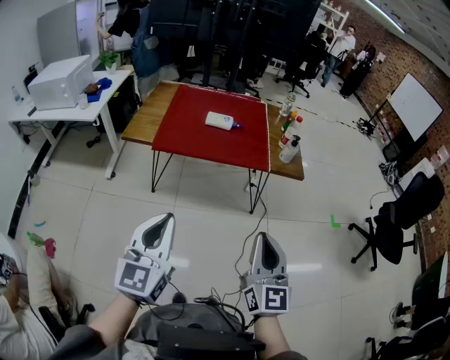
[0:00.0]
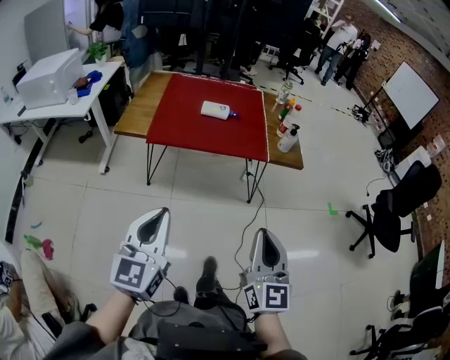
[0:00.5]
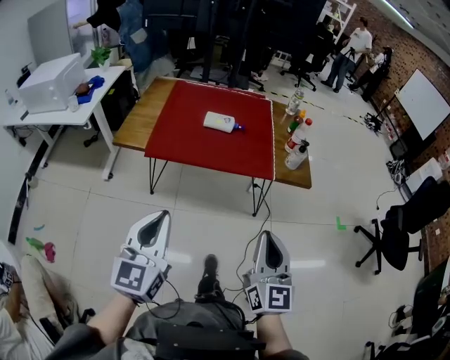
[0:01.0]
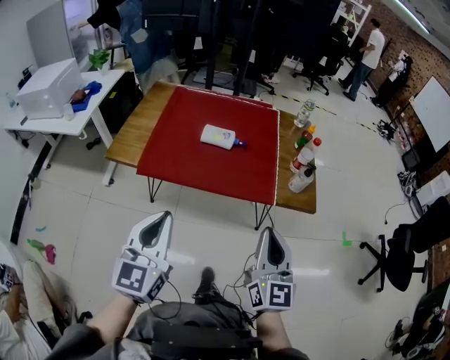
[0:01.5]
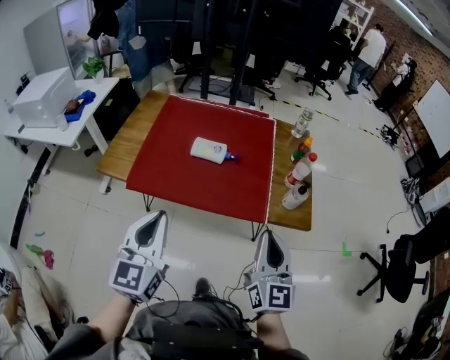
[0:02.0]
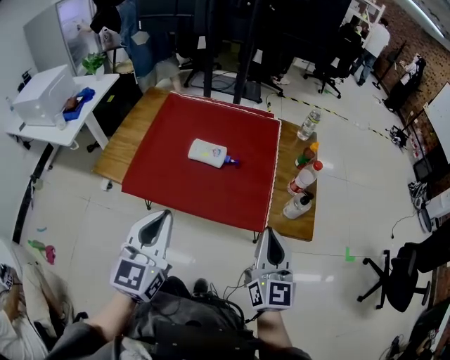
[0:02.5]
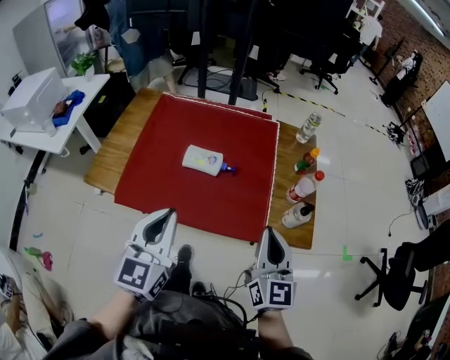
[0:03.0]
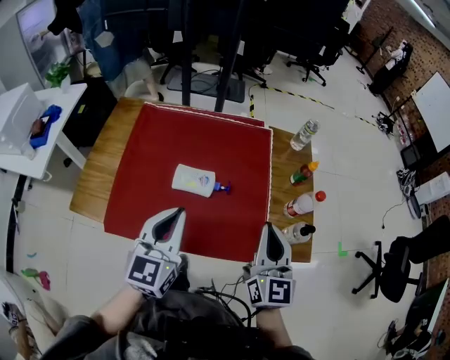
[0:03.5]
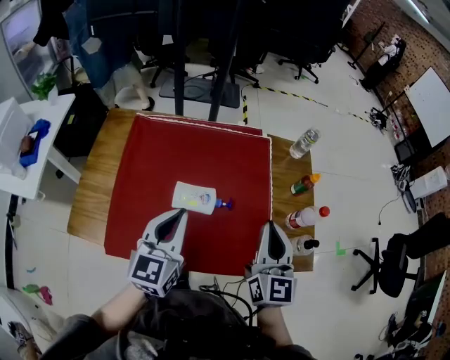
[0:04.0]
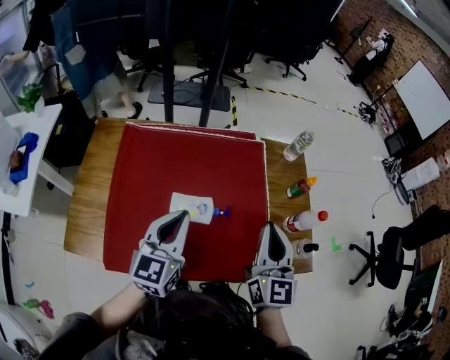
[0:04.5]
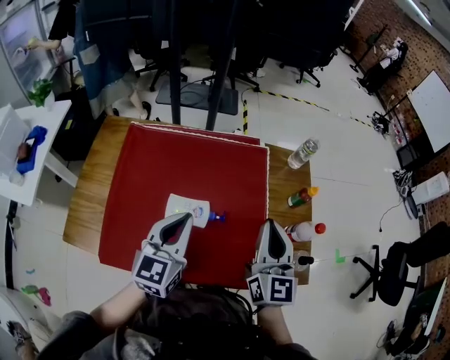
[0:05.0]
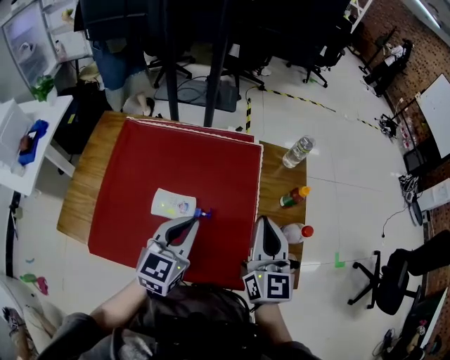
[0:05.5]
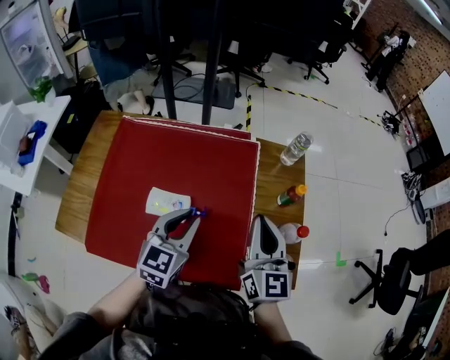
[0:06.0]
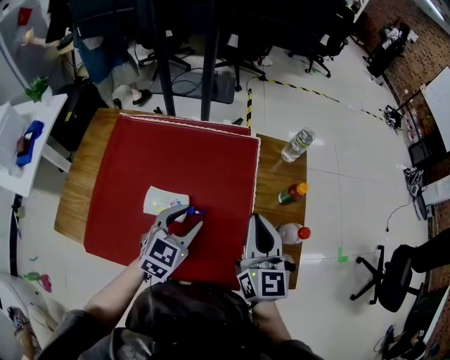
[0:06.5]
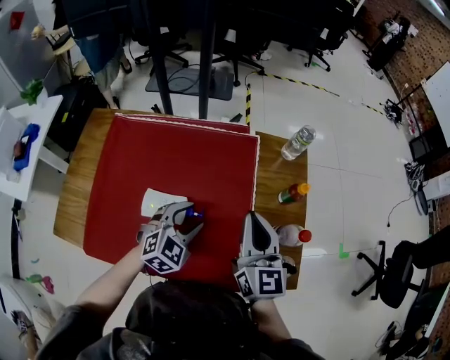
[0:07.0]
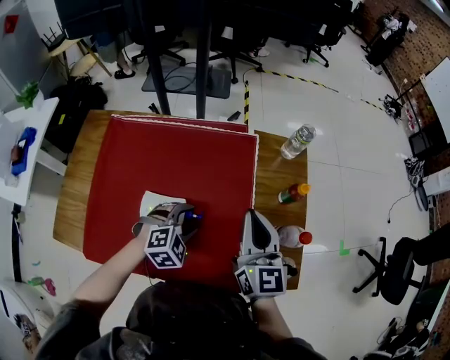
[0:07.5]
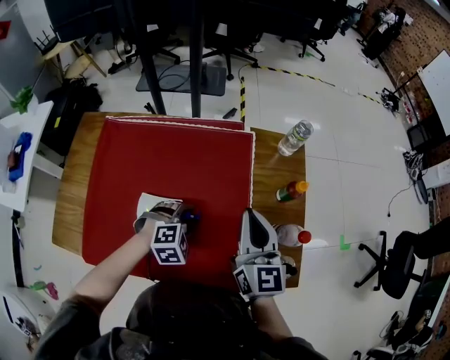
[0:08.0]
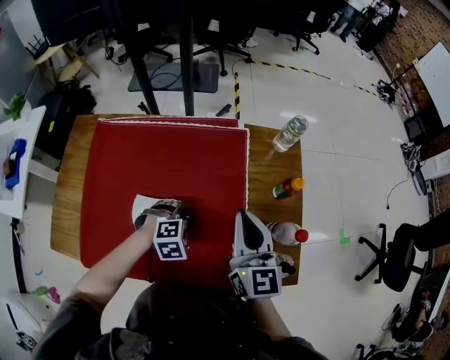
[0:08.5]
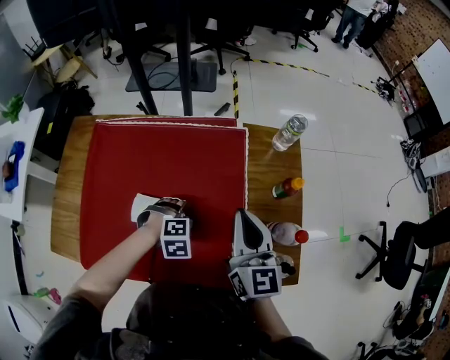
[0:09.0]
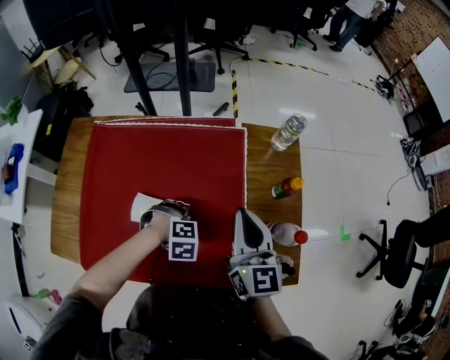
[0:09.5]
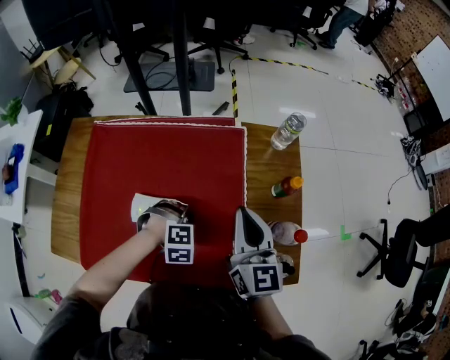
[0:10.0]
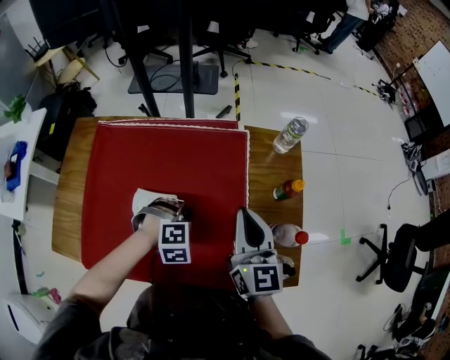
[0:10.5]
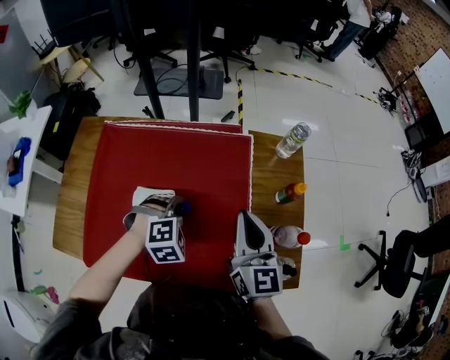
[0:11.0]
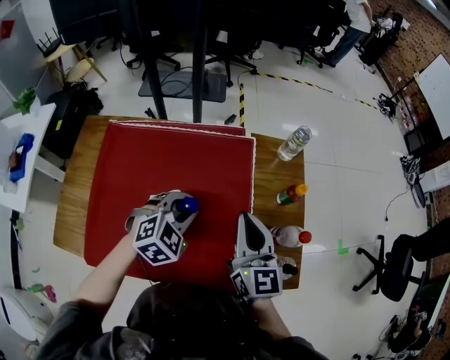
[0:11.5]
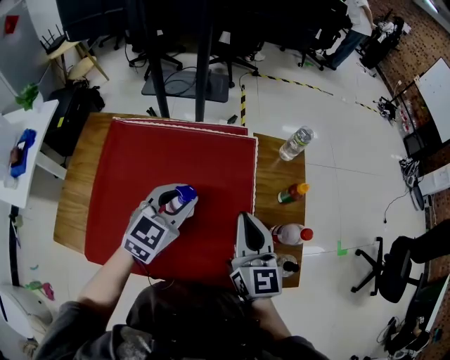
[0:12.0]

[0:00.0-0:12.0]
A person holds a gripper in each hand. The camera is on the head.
0:00.0 to 0:02.0: Both grippers travel together forward, roughly 40 cm.
0:02.0 to 0:04.0: Both grippers travel together forward, approximately 35 cm.
0:04.0 to 0:06.0: The right gripper shifts roughly 15 cm forward and to the right. Meanwhile the left gripper is displaced to the right and forward by about 15 cm.
0:06.0 to 0:08.0: The left gripper moves downward, about 20 cm, tilts its fingers about 40 degrees downward, and opens its fingers; the right gripper travels forward by some 5 cm.
0:08.0 to 0:10.0: The left gripper changes its angle by roughly 20 degrees, and closes up.
0:10.0 to 0:12.0: The right gripper heads backward, covering approximately 5 cm. The left gripper is displaced upward by approximately 20 cm, and angles its fingers upward, by some 50 degrees.

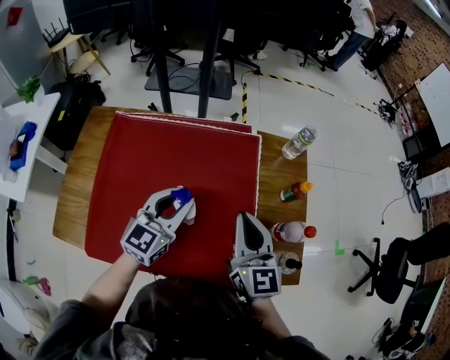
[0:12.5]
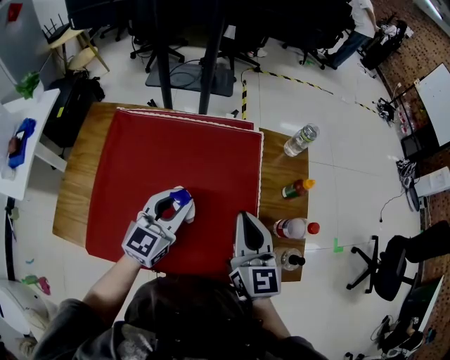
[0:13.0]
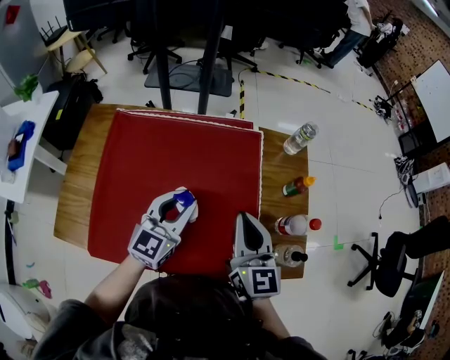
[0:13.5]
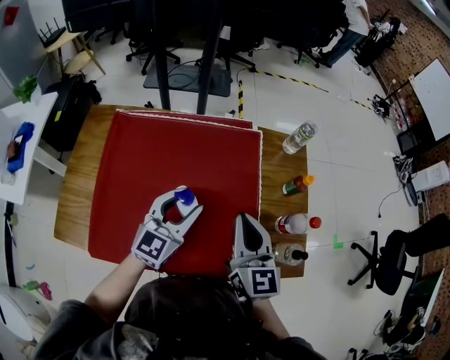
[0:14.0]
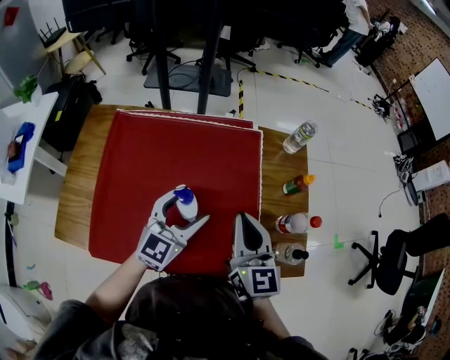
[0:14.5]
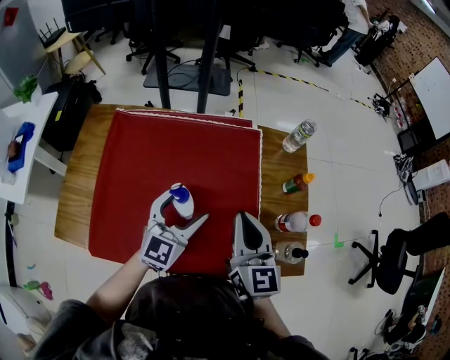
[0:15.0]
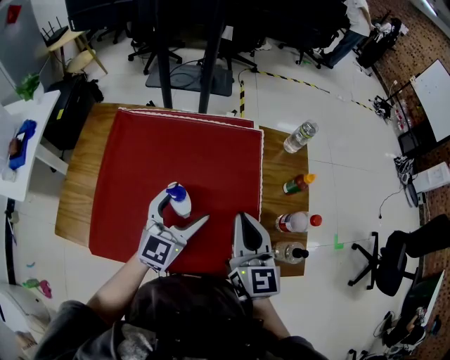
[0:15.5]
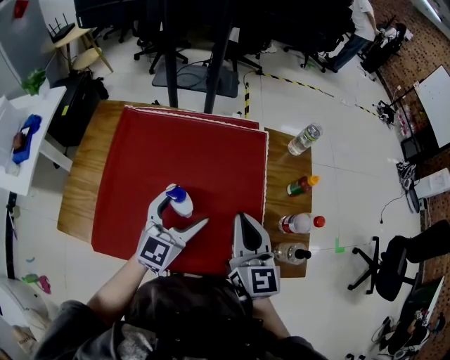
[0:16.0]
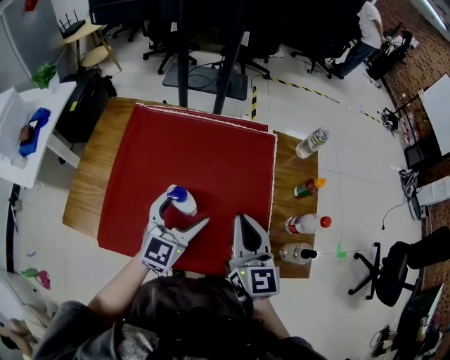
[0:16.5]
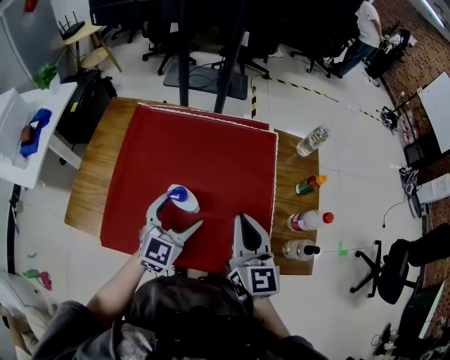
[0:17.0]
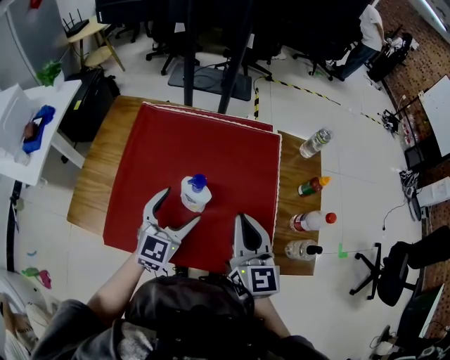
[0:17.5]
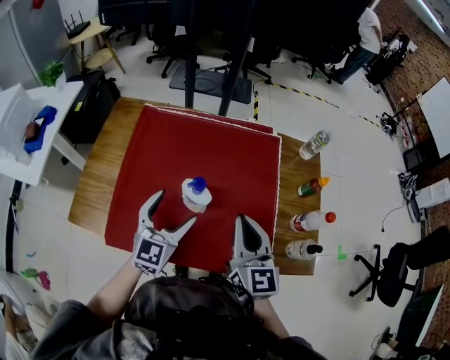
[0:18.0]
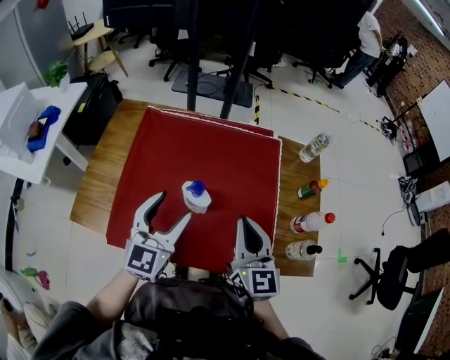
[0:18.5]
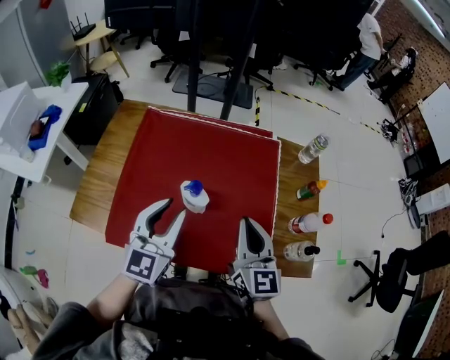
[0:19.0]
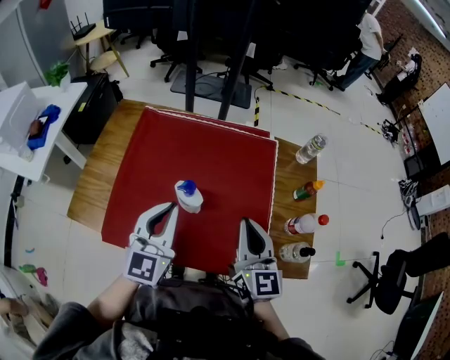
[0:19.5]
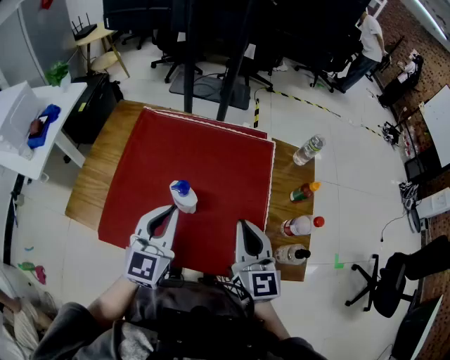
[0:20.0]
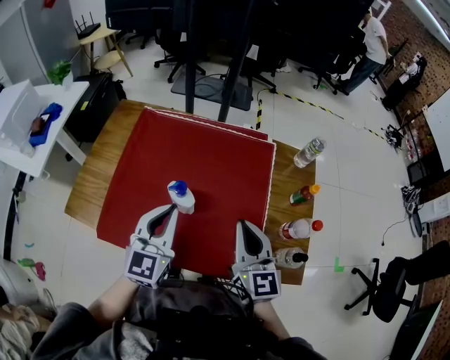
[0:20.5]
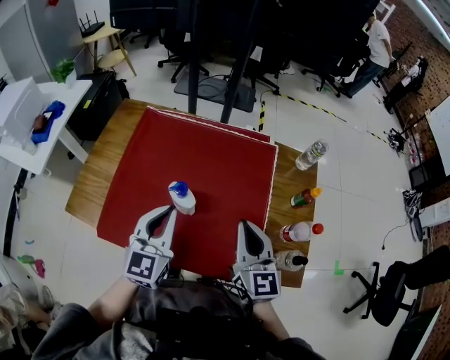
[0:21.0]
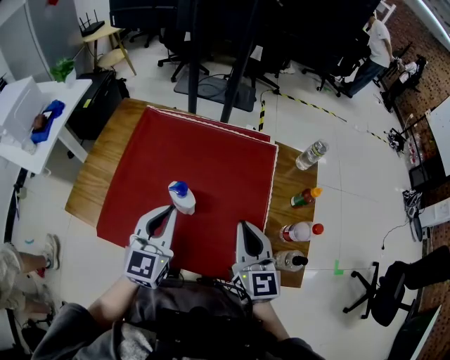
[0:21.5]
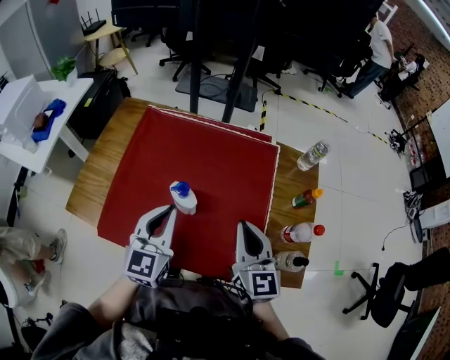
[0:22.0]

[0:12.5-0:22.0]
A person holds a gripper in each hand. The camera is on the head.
0:12.5 to 0:14.5: The left gripper opens its fingers.
0:14.5 to 0:16.5: The right gripper ends up approximately 5 cm from where it was. The left gripper travels to the left by roughly 5 cm.
0:16.5 to 0:18.0: The left gripper heads to the left, covering approximately 5 cm.
0:18.0 to 0:20.0: The right gripper shifts by some 5 cm. Meanwhile the left gripper shifts roughly 5 cm upward, and closes its fingers.
0:20.0 to 0:22.0: The grippers move only a little.

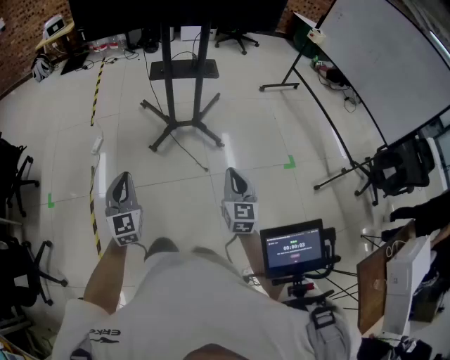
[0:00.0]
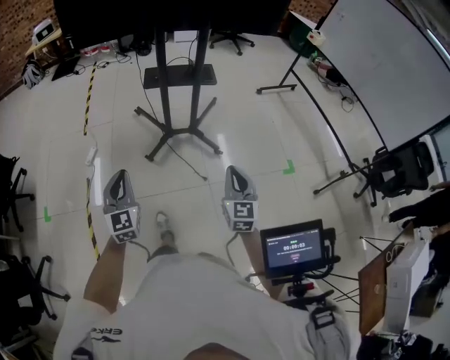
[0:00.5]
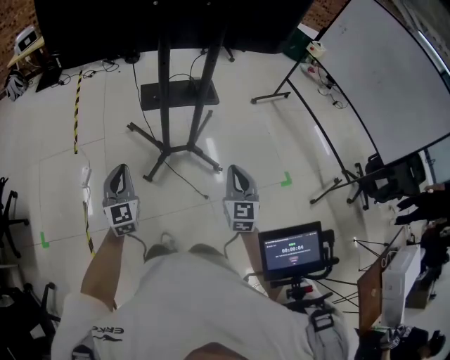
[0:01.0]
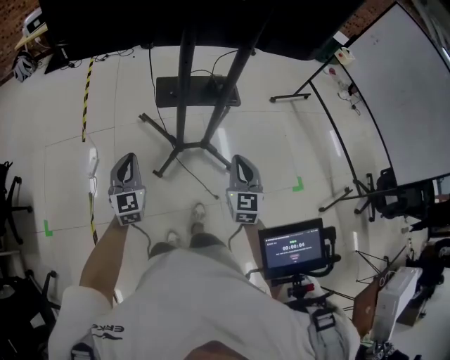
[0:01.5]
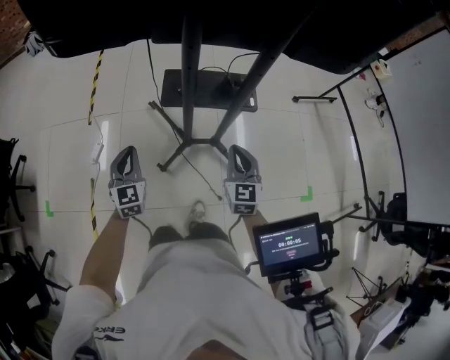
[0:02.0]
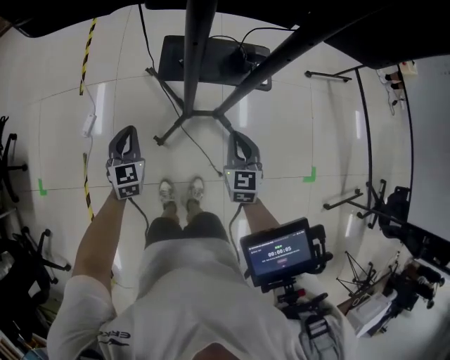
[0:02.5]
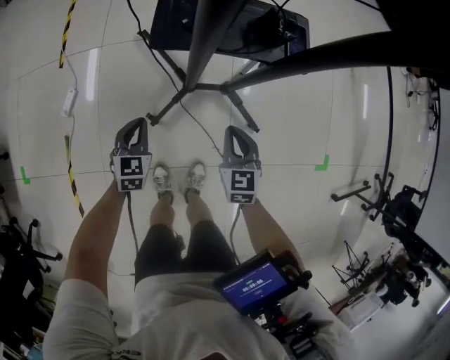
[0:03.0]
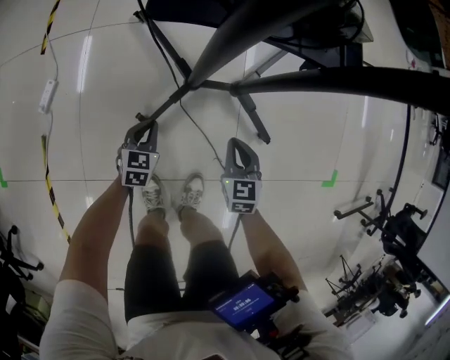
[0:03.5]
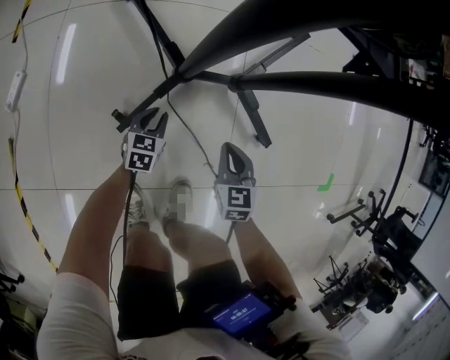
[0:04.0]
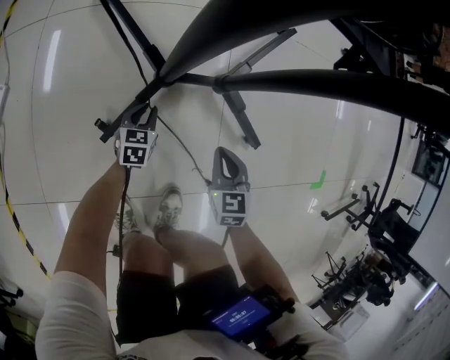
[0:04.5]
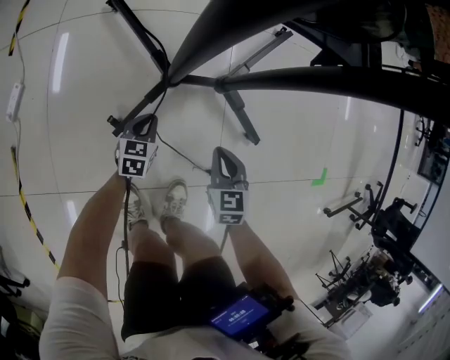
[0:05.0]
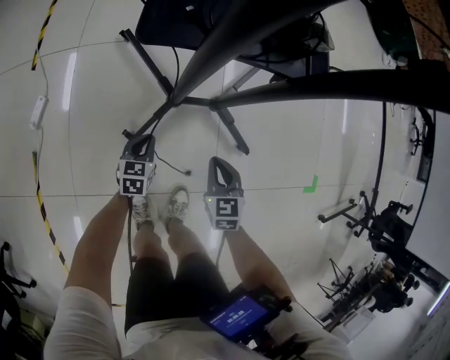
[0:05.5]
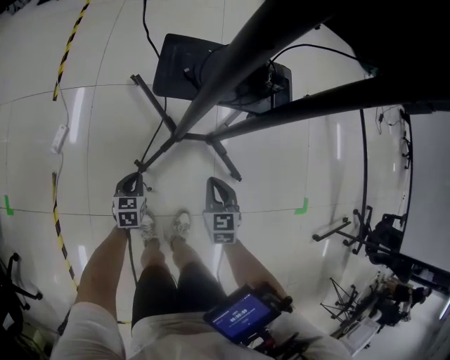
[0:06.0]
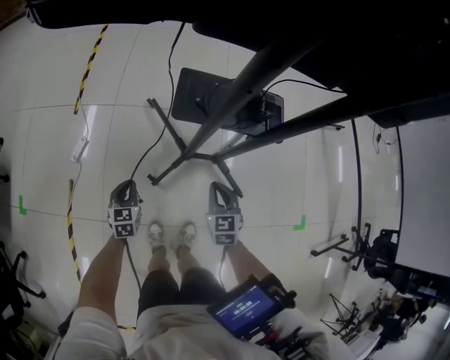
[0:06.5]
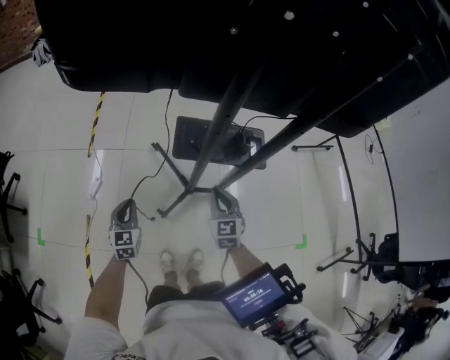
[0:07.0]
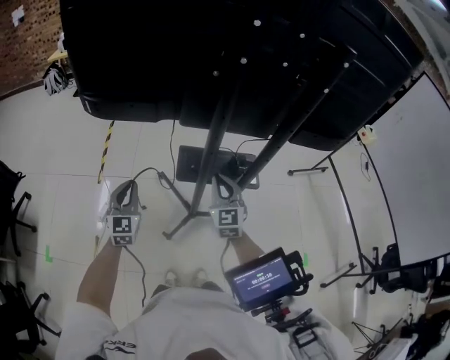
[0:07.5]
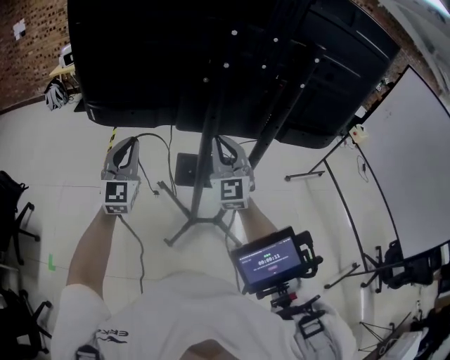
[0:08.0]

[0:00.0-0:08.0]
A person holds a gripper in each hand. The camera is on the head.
0:00.0 to 0:02.0: The two grippers travel together, forward, roughly 50 cm.
0:02.0 to 0:04.0: Both grippers travel together downward, about 70 cm. The left gripper rotates roughly 40 degrees, while the right gripper swivels about 30 degrees.
0:04.0 to 0:06.0: Both grippers move upward, roughly 30 cm.
0:06.0 to 0:08.0: Both grippers travel together upward, some 60 cm. The right gripper tilts its fingers approximately 50 degrees upward; the left gripper tips its fingers upward by roughly 60 degrees.
